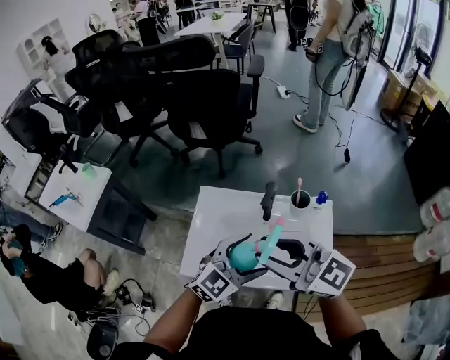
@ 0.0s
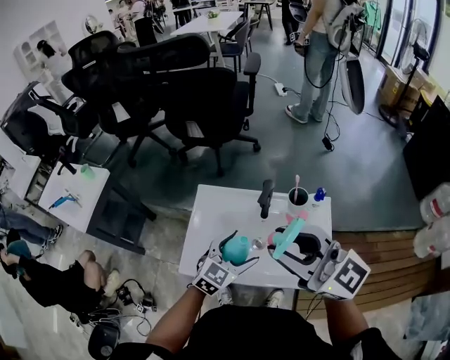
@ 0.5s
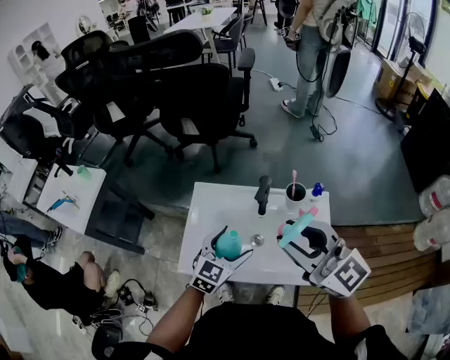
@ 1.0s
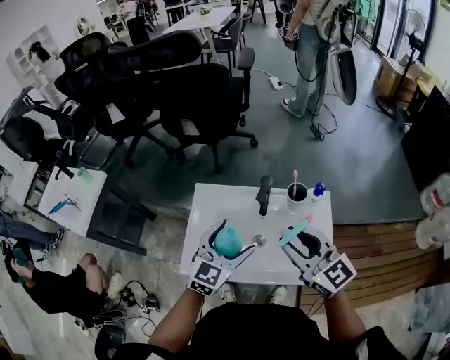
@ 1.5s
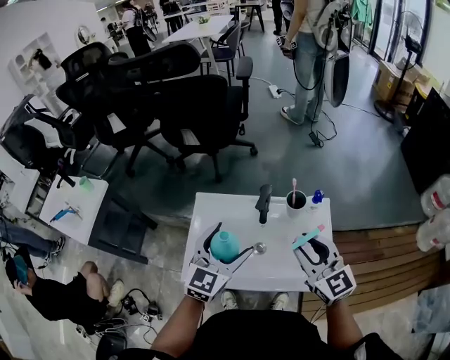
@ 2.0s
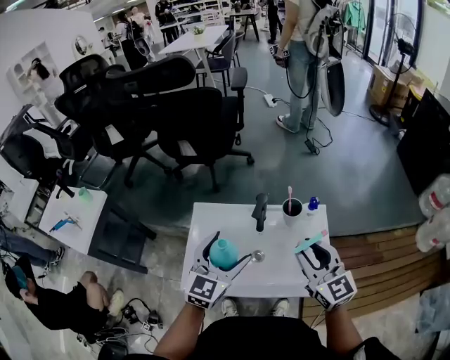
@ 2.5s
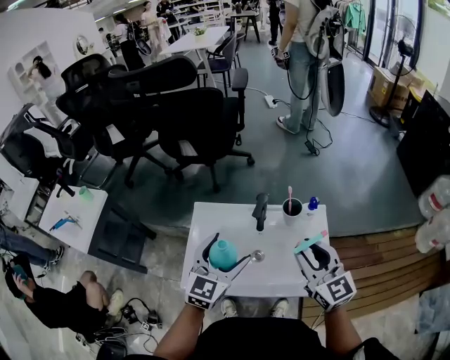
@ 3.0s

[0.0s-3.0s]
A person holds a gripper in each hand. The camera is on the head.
0.0s to 1.5s: The left gripper is displaced forward by approximately 5 cm; the right gripper is displaced to the right and downward by about 10 cm, and turns by roughly 20 degrees.
1.5s to 3.0s: The right gripper goes some 5 cm to the right.

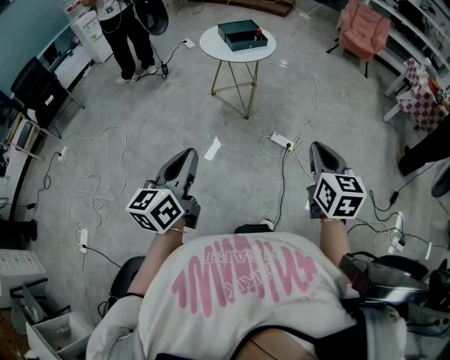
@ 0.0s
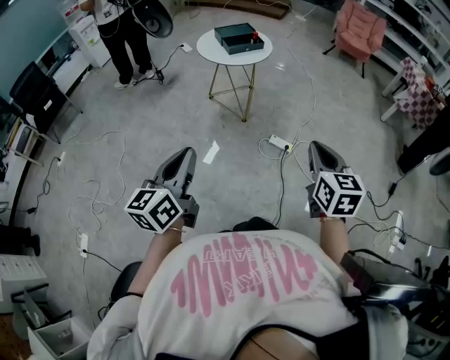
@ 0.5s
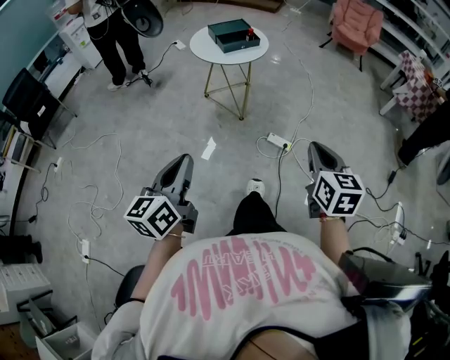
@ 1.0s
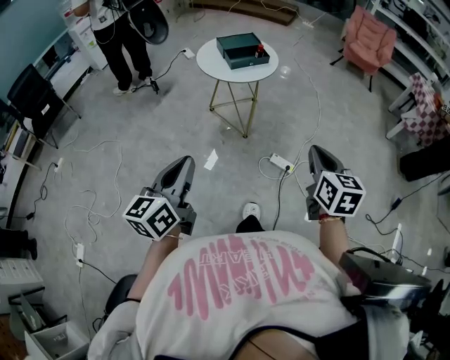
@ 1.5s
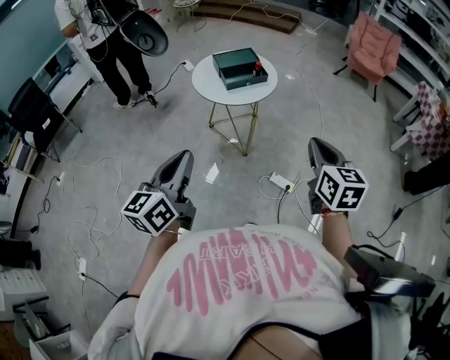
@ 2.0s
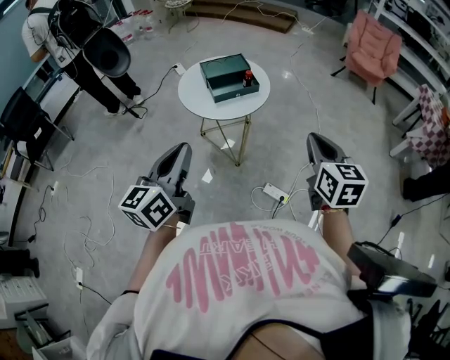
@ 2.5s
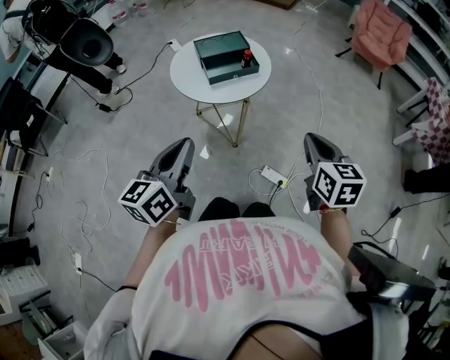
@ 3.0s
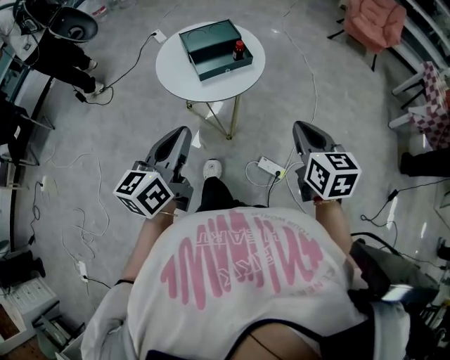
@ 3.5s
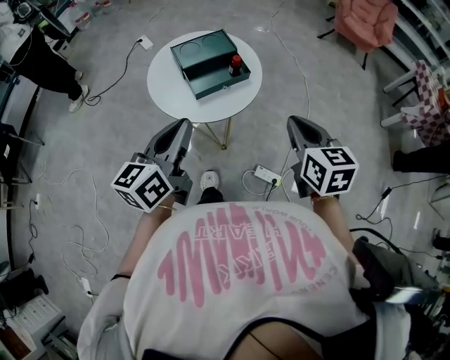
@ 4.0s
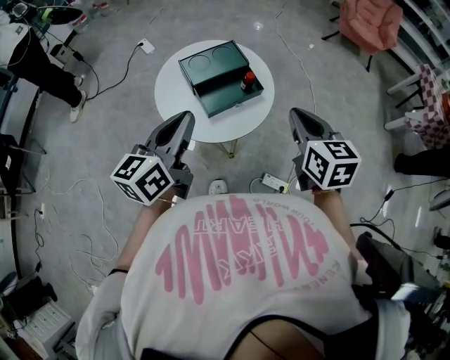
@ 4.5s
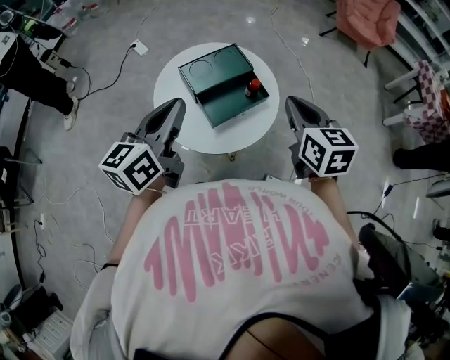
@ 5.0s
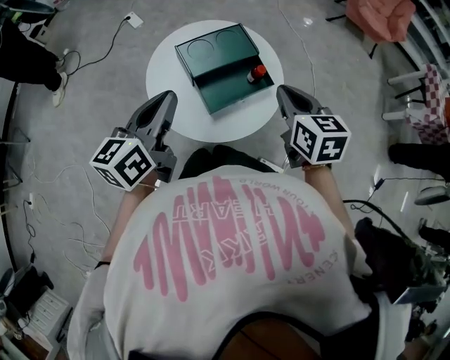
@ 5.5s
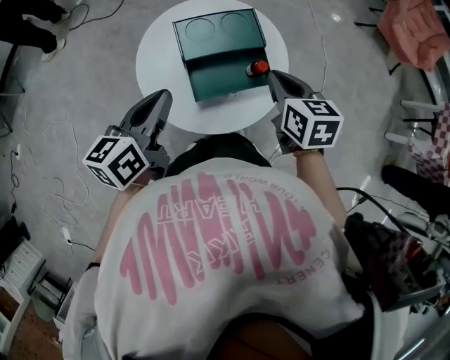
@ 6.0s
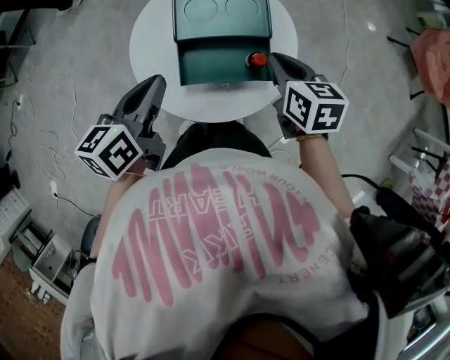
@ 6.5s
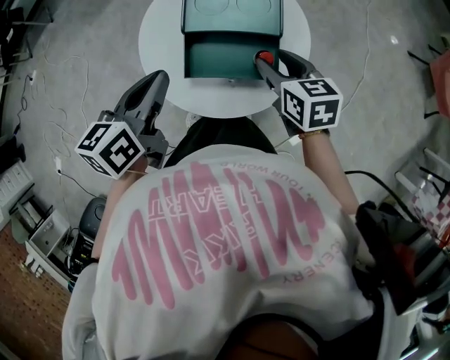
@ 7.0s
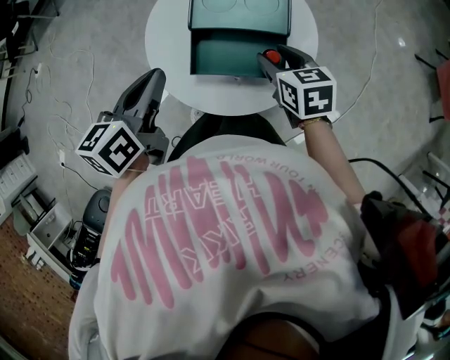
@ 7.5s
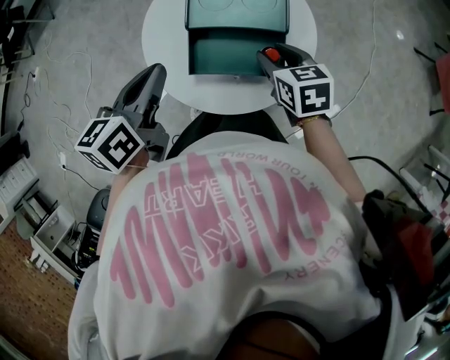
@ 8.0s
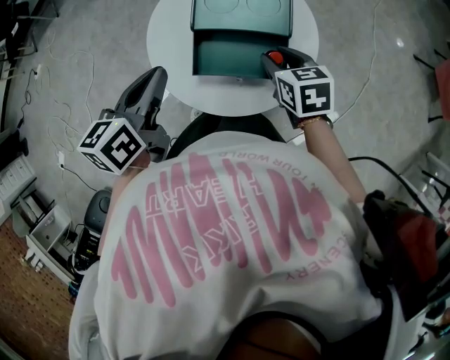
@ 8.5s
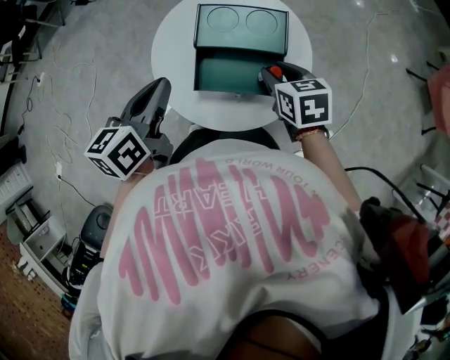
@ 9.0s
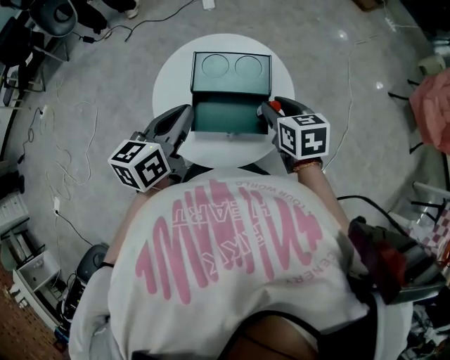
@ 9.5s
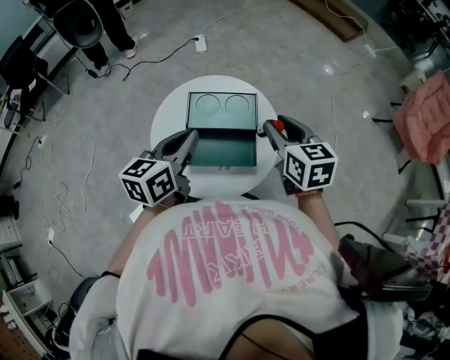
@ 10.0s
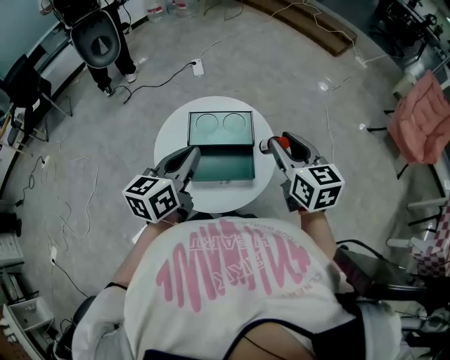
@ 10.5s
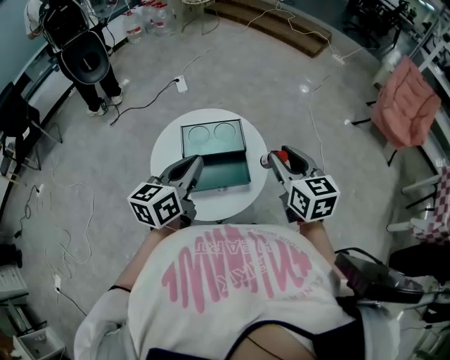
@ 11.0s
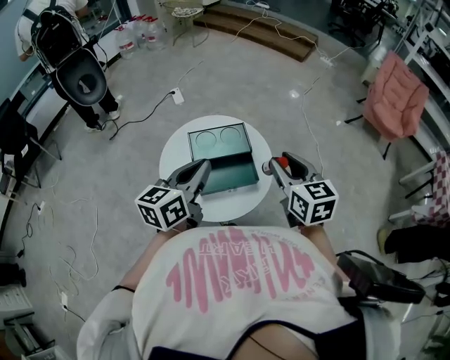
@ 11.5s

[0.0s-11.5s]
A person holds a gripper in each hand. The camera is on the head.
0.0s to 2.0s: Both grippers move forward, about 30 cm.
2.0s to 4.0s: The grippers both shift forward by approximately 35 cm.
4.0s to 6.0s: The left gripper heads forward and downward, covering about 25 cm. The right gripper goes some 30 cm forward.
6.0s to 7.5s: The right gripper moves about 15 cm, turns by some 30 degrees, and opens up, while the left gripper swivels roughly 20 degrees.
7.5s to 9.5s: The right gripper goes roughly 5 cm upward; the left gripper goes about 5 cm to the right.
9.5s to 11.5s: The right gripper moves upward and backward, about 20 cm, and rotates roughly 30 degrees, while the left gripper goes about 10 cm upward, and rotates about 20 degrees.

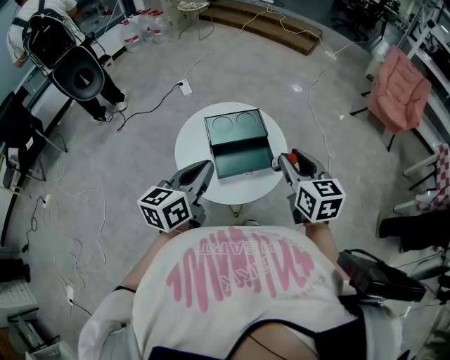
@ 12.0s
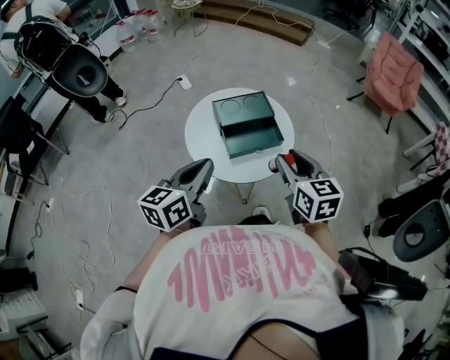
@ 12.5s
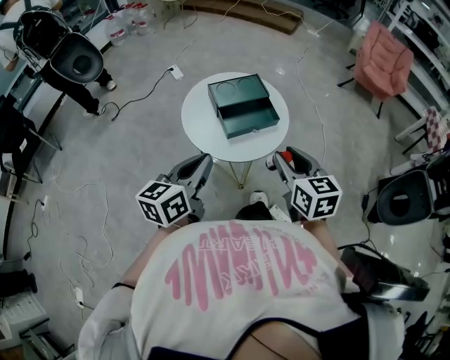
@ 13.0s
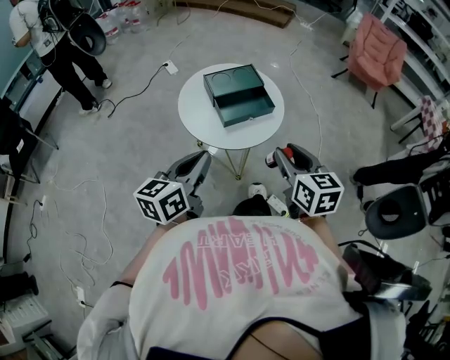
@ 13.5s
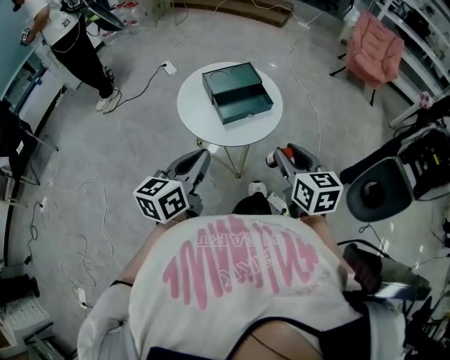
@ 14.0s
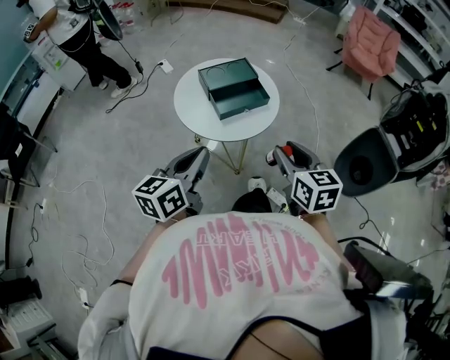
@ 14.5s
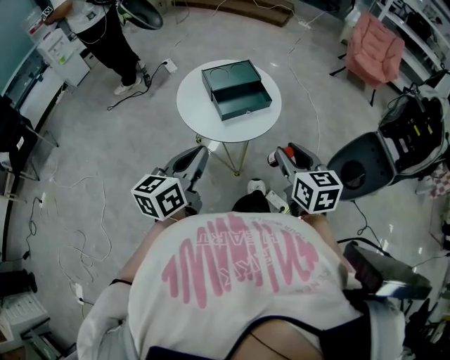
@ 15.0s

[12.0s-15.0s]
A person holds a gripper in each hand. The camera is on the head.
12.0s to 13.5s: The two grippers go about 20 cm backward.
13.5s to 15.0s: The grippers stay close to where they were, moving slightly.

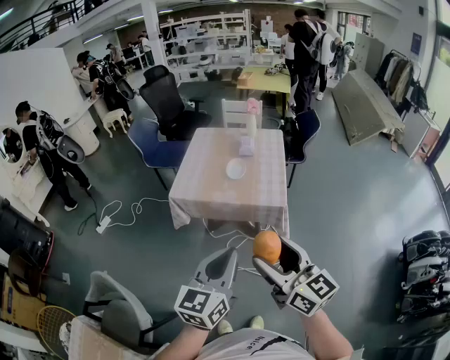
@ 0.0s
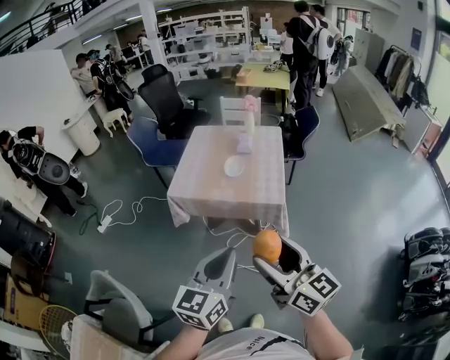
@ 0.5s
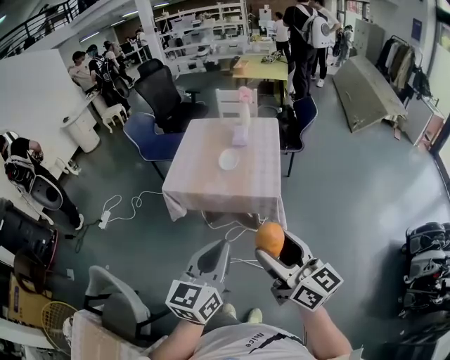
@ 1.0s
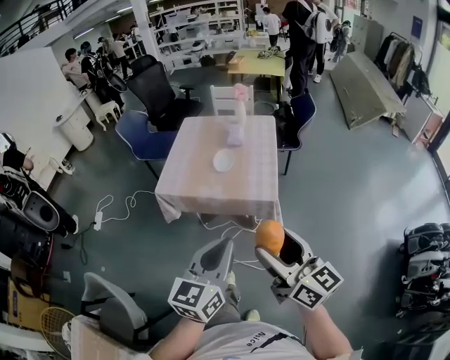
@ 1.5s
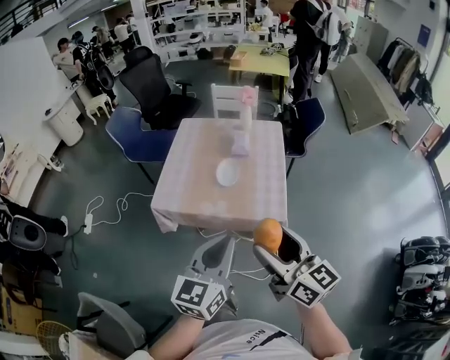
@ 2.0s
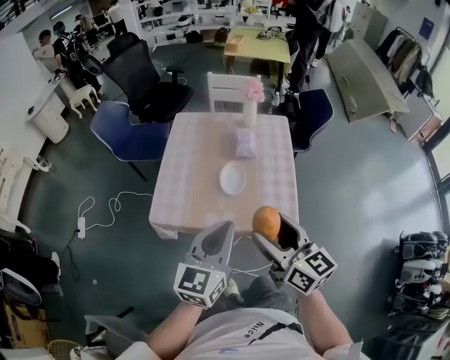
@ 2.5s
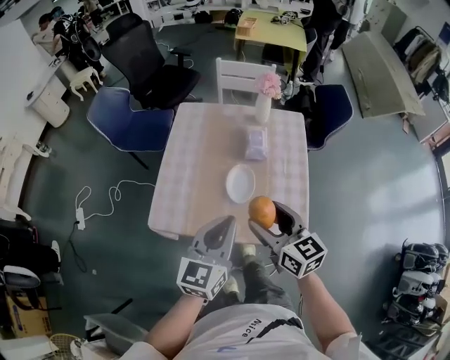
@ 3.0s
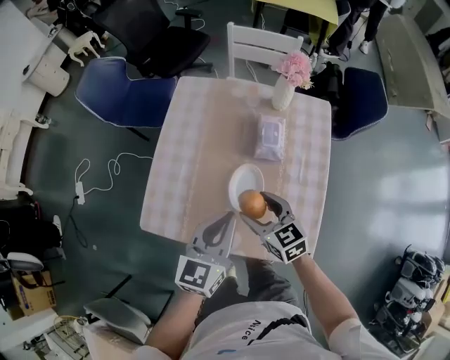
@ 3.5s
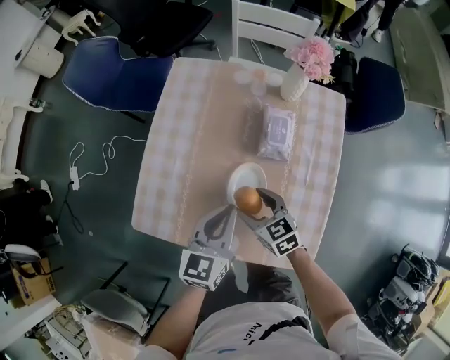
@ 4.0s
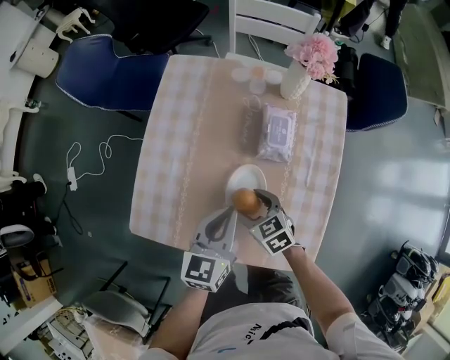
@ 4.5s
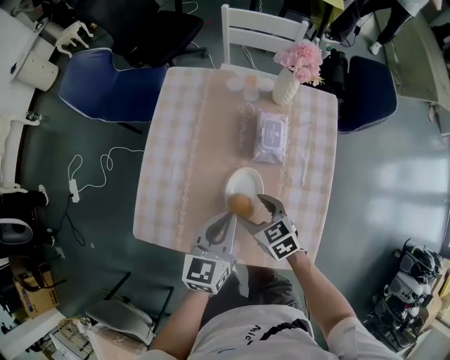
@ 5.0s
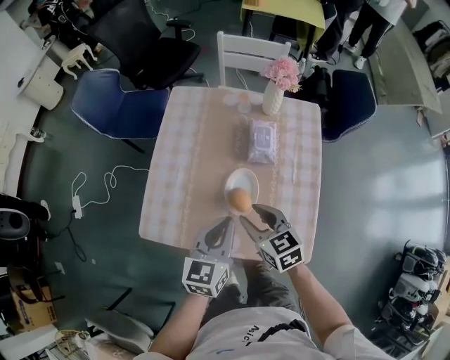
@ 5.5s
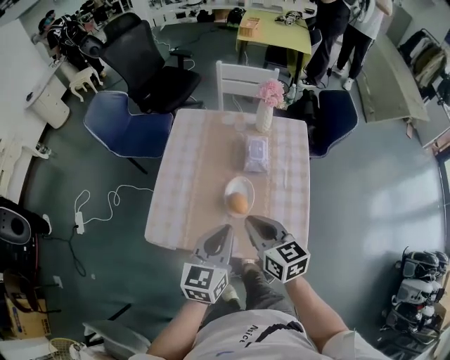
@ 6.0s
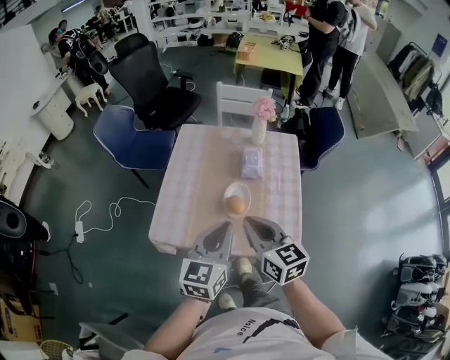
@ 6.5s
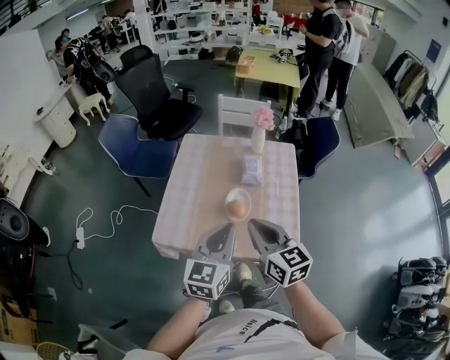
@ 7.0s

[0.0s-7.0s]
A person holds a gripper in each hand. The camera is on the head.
0.0s to 2.0s: Both grippers move forward, about 20 cm.
2.0s to 3.5s: Both grippers move forward and downward, roughly 40 cm. The right gripper angles its fingers downward, by approximately 30 degrees.
3.5s to 5.0s: The two grippers go roughly 10 cm downward.
5.0s to 7.0s: The grippers both shift upward and backward by approximately 30 cm. The right gripper points its fingers some 30 degrees further upward, and closes up.

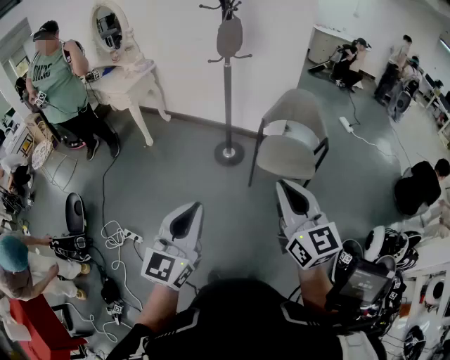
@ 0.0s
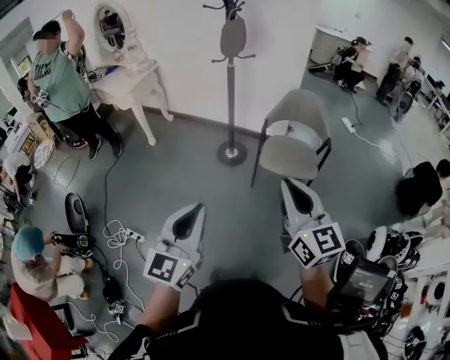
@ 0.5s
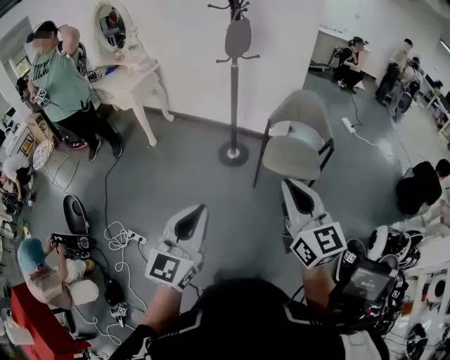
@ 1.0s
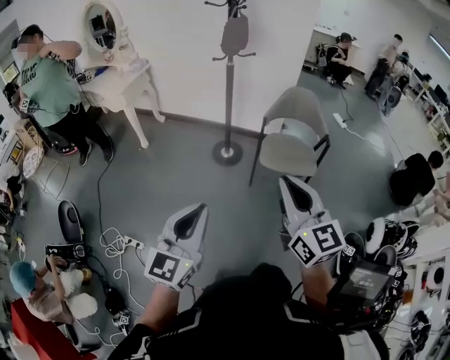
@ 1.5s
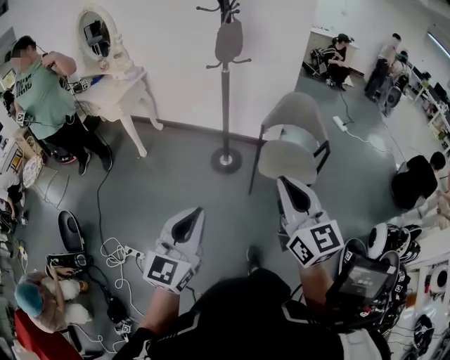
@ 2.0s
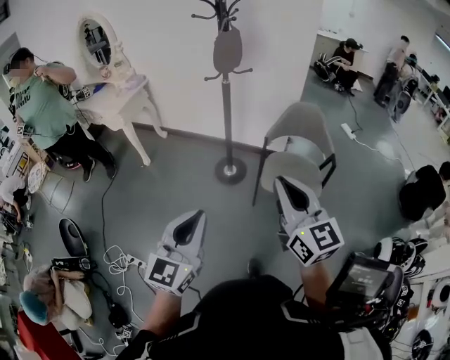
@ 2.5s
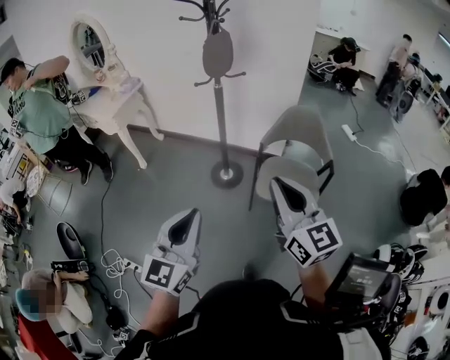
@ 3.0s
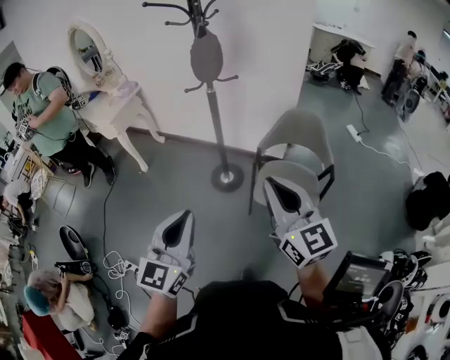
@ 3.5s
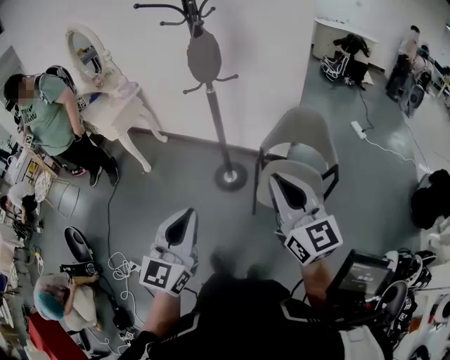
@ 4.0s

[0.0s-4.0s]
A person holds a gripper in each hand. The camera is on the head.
0.0s to 2.0s: The two grippers go roughly 10 cm forward and to the left.
2.0s to 4.0s: Both grippers travel together forward and to the right, about 25 cm.
